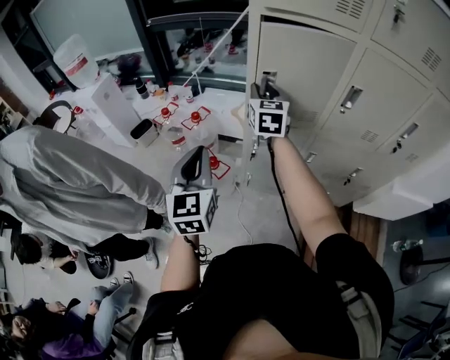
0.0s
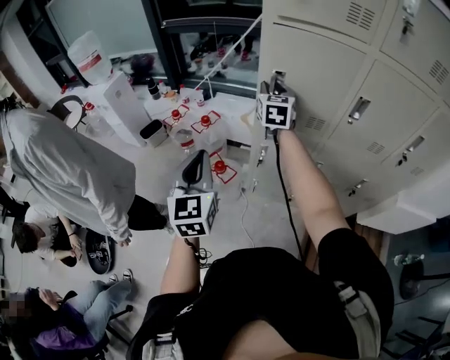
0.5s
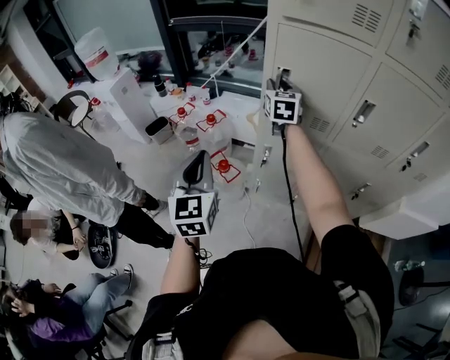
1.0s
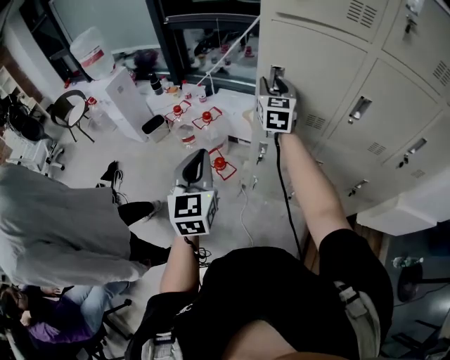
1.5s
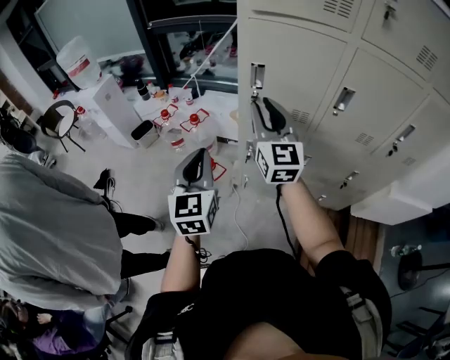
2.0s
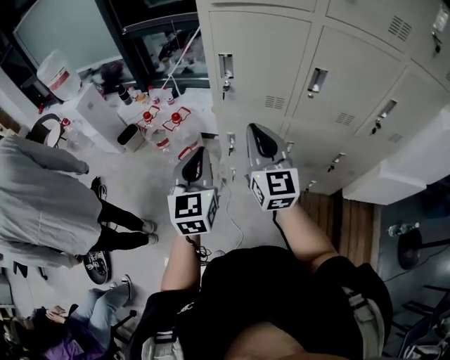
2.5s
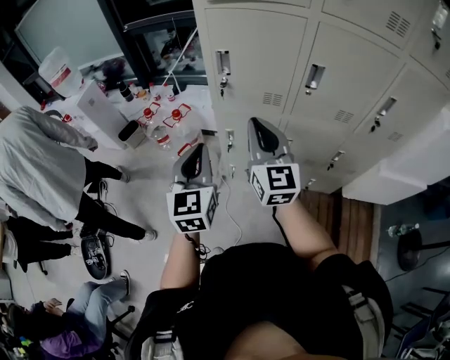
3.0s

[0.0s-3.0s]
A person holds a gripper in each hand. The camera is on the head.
1.5s to 3.0s: The right gripper shifts approximately 25 cm backward, and closes up, while the left gripper is displaced to the right by about 10 cm.

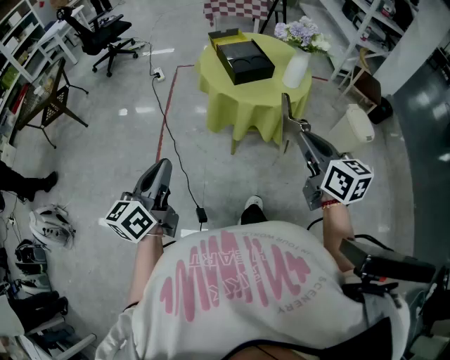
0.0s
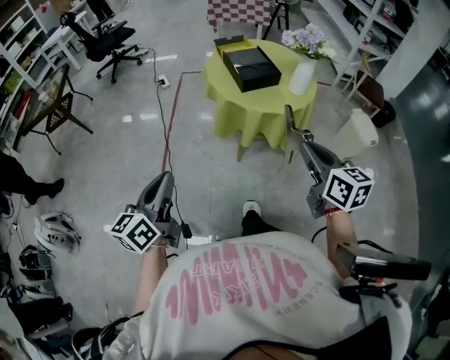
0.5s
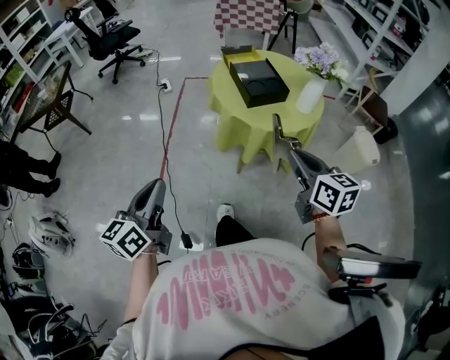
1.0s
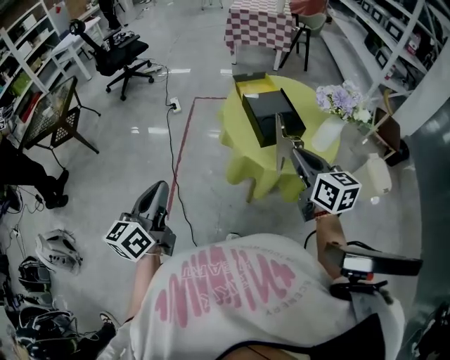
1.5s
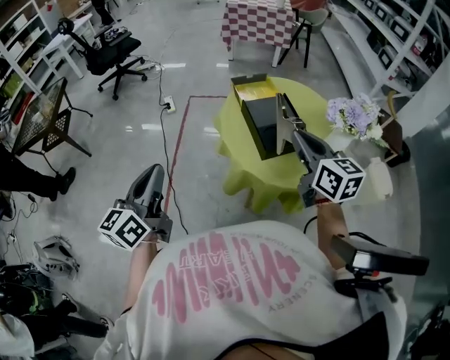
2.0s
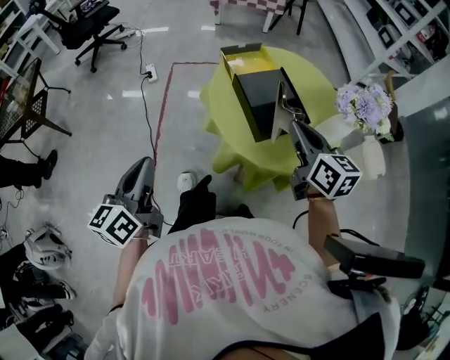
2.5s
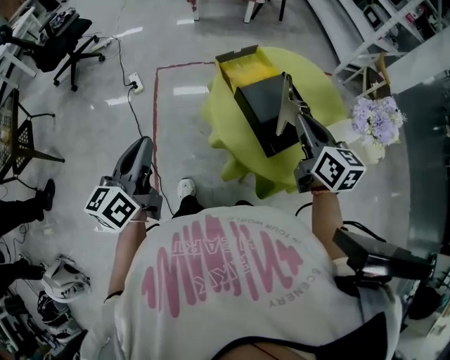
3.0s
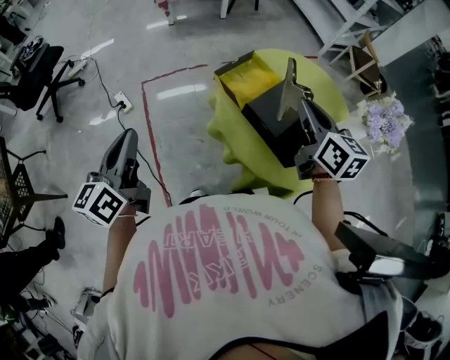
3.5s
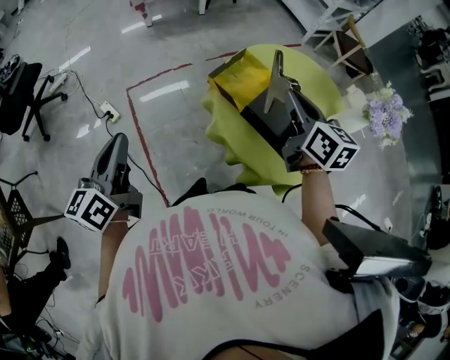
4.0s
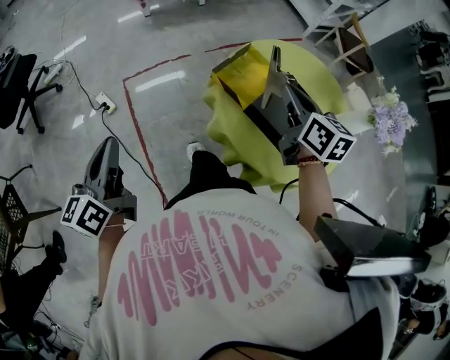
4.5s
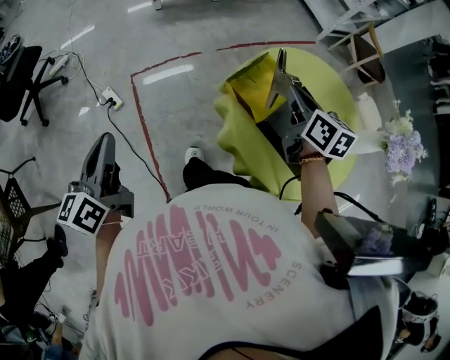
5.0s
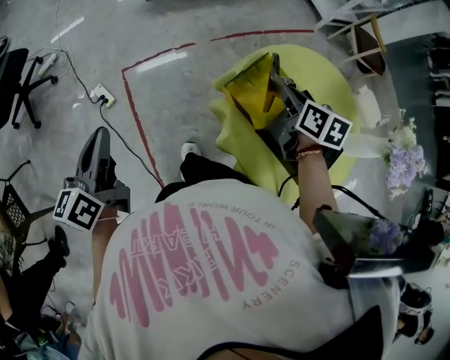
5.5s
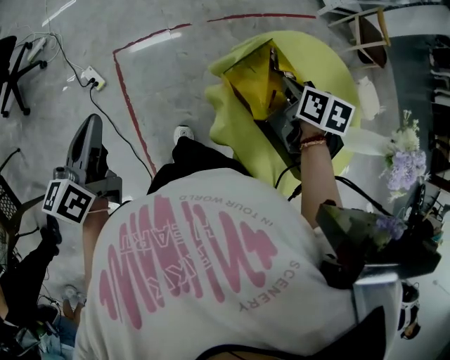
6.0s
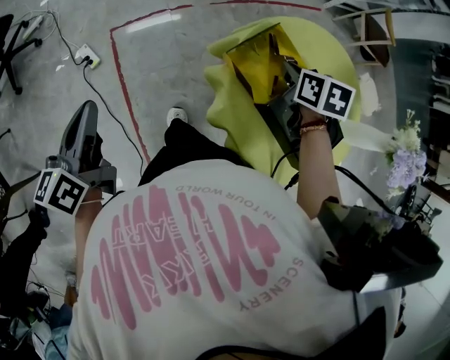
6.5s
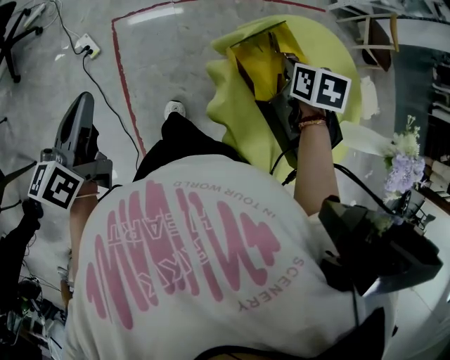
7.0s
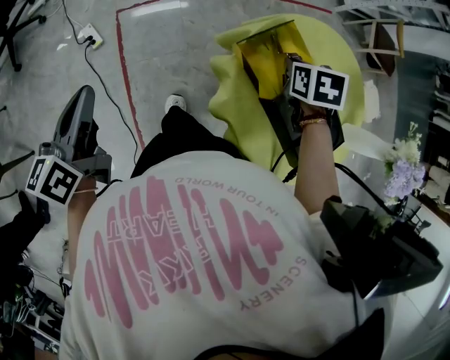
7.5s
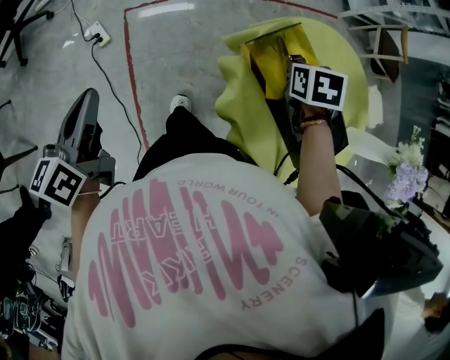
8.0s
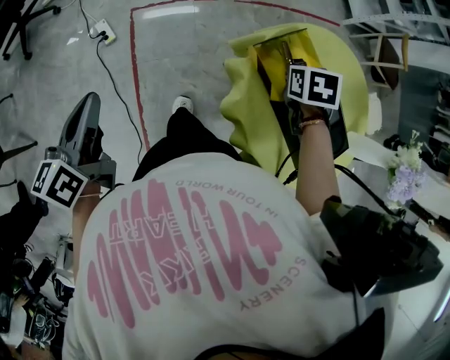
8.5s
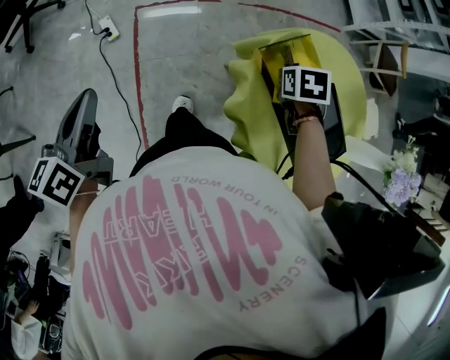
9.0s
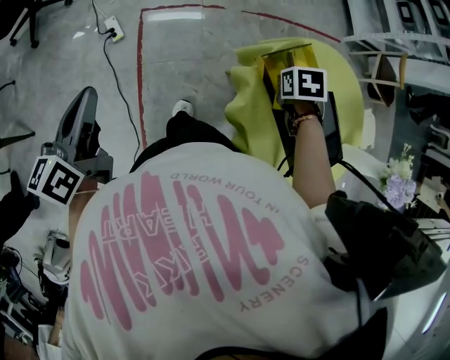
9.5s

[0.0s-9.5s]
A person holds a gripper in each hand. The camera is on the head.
0.0s to 2.0s: Both grippers travel together forward, roughly 35 cm.
2.0s to 4.0s: The left gripper ends up some 50 cm from where it was, and turns by about 30 degrees. The right gripper shifts by roughly 30 cm, and turns by approximately 40 degrees.
4.0s to 5.5s: The left gripper goes about 15 cm forward and to the left; the right gripper heads forward and downward, covering approximately 20 cm, and swivels about 20 degrees.
5.5s to 7.5s: The left gripper moves roughly 5 cm, while the right gripper heads downward, covering roughly 5 cm, and swivels about 40 degrees.
7.5s to 9.5s: The right gripper changes place by roughly 5 cm. The left gripper shifts by roughly 10 cm.

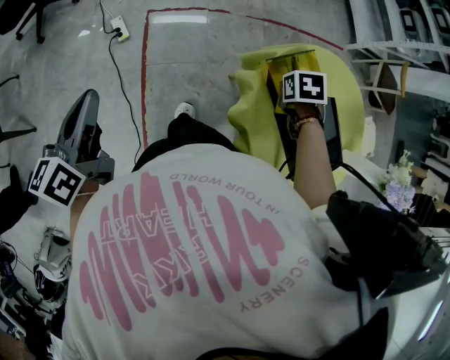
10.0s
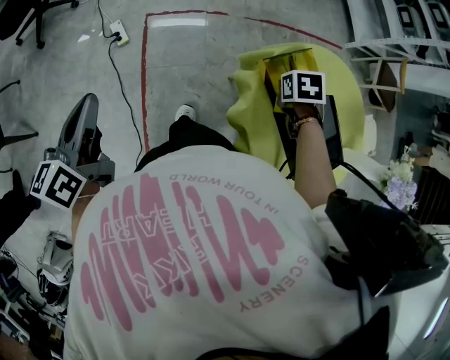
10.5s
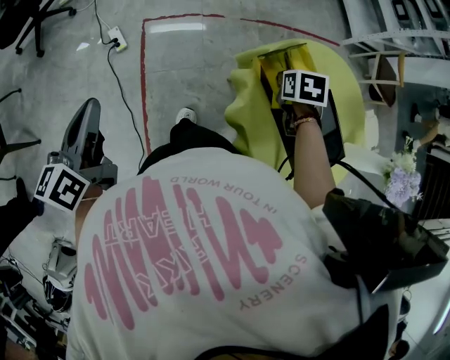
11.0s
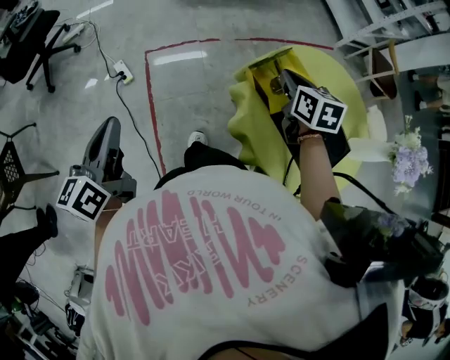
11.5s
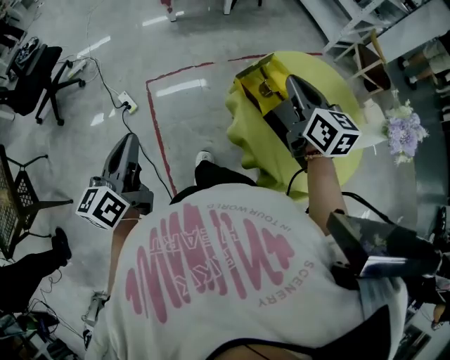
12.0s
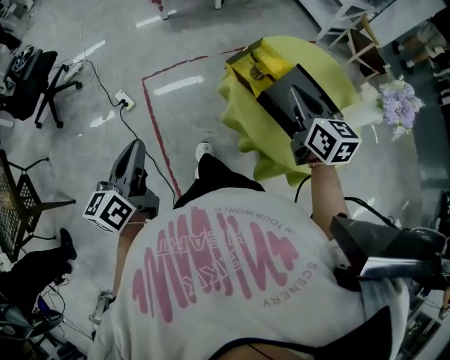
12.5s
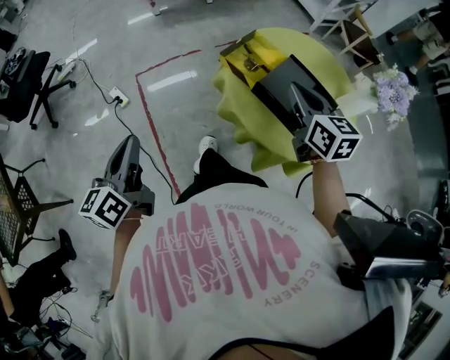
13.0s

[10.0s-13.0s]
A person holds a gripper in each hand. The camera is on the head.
10.0s to 11.5s: The left gripper shifts by approximately 5 cm. The right gripper moves upward, some 10 cm, and points its fingers roughly 40 degrees further upward.
11.5s to 13.0s: The right gripper shifts approximately 20 cm backward and upward. The left gripper is displaced backward and to the right by about 10 cm.

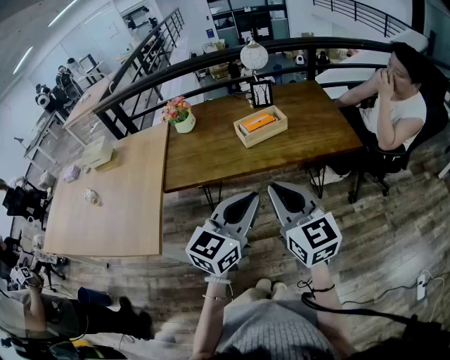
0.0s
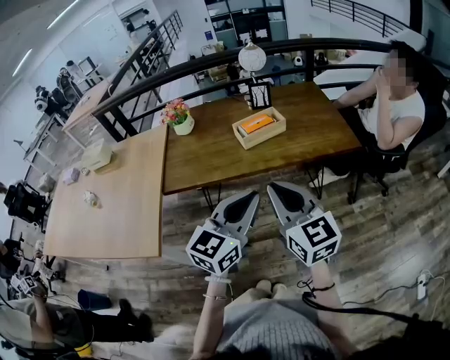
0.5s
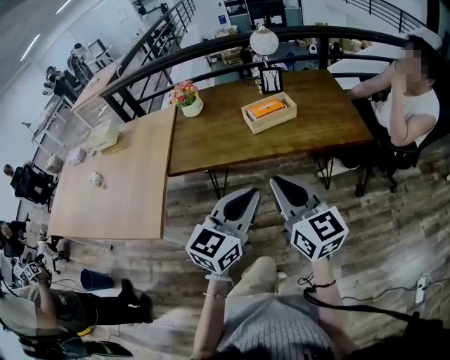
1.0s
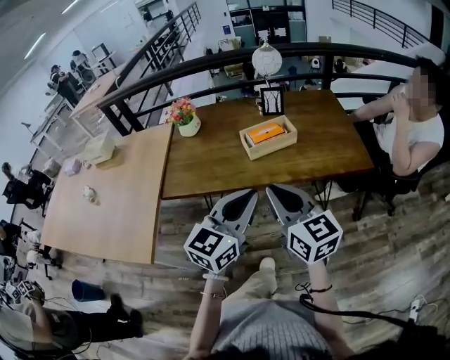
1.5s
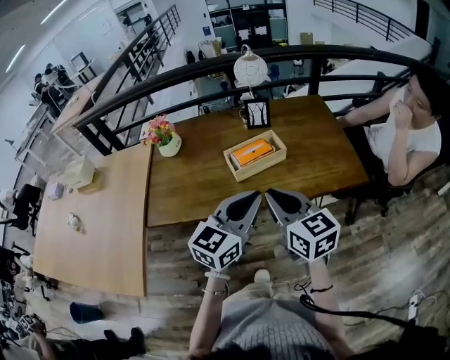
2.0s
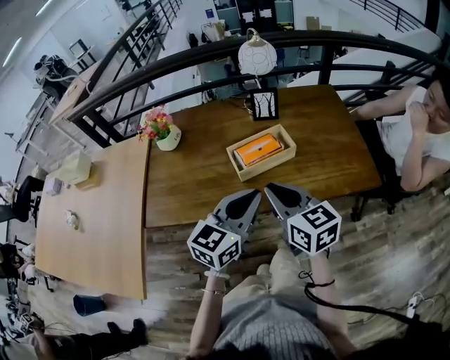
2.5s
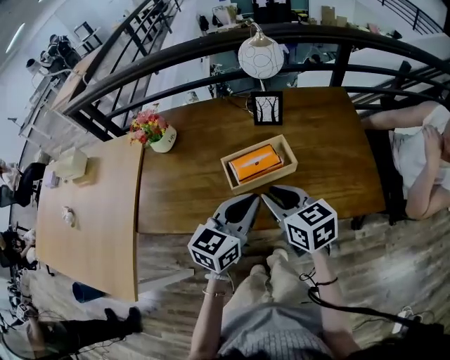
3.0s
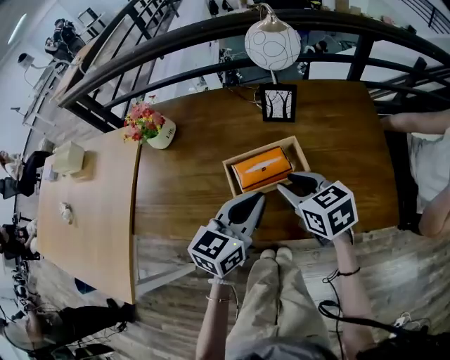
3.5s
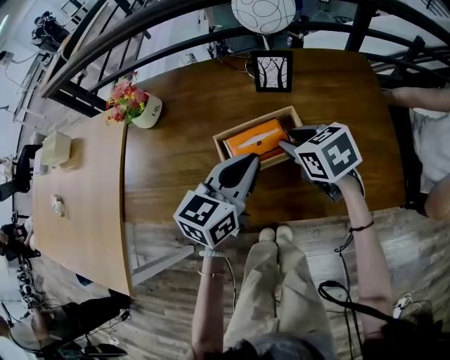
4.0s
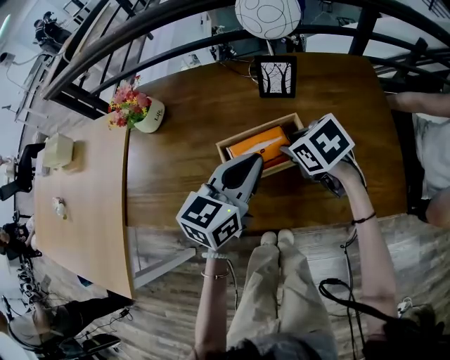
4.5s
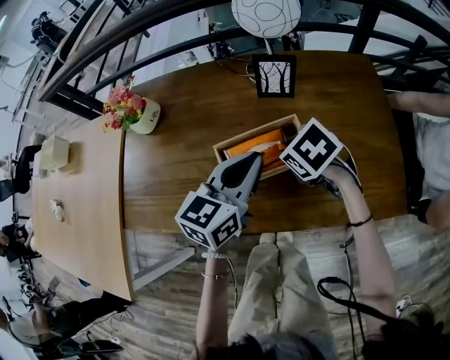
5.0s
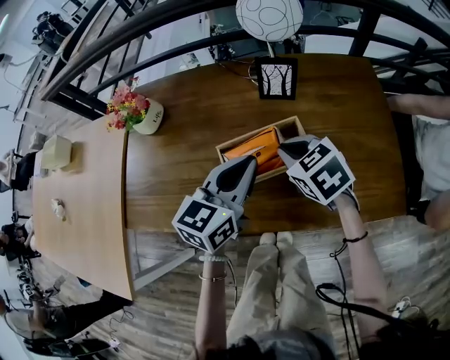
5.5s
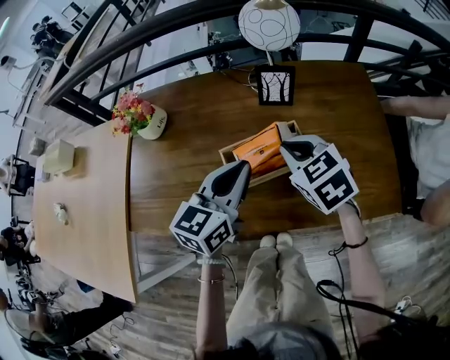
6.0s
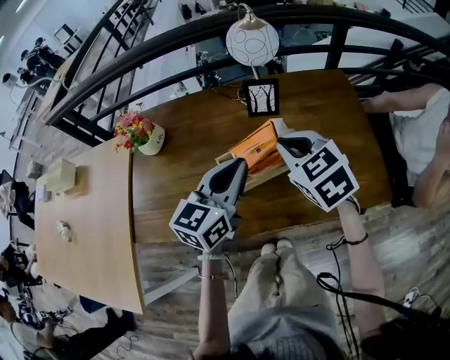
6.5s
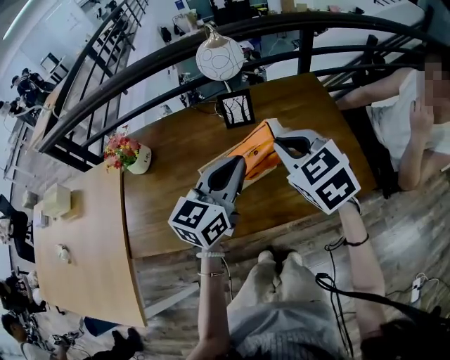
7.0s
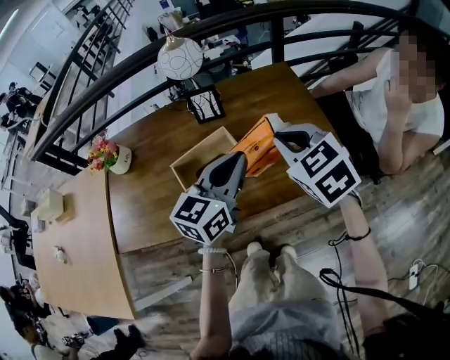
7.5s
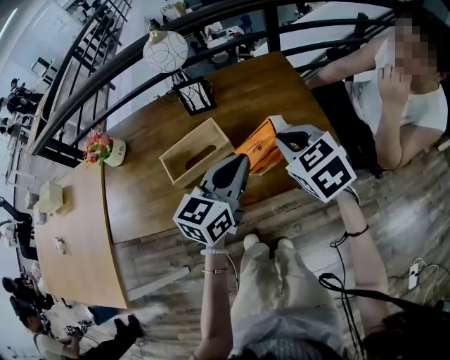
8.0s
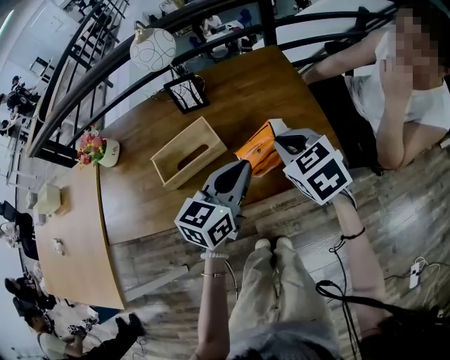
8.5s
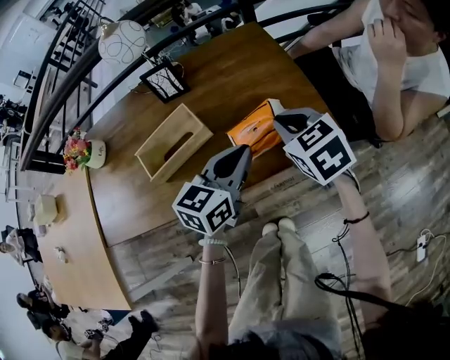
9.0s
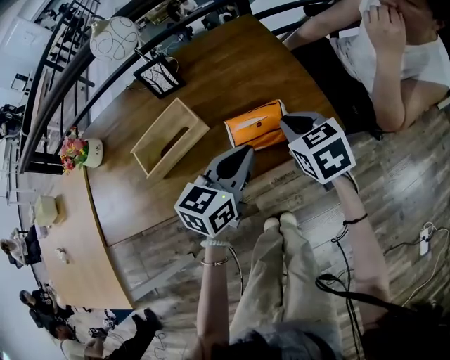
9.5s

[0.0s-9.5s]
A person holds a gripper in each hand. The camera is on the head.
0.0s to 2.0s: The grippers both shift forward by approximately 20 cm.
2.0s to 4.0s: Both grippers travel together forward and downward, some 30 cm. The right gripper angles its fingers downward, by approximately 30 degrees, and opens its fingers.
4.0s to 5.5s: The right gripper closes its fingers.
5.5s to 7.5s: The right gripper travels to the right, upward and backward by about 25 cm, and rotates roughly 20 degrees. Meanwhile the left gripper shifts some 15 cm to the right and upward.
7.5s to 9.5s: The two grippers go some 20 cm downward and to the right. The right gripper swivels some 20 degrees.

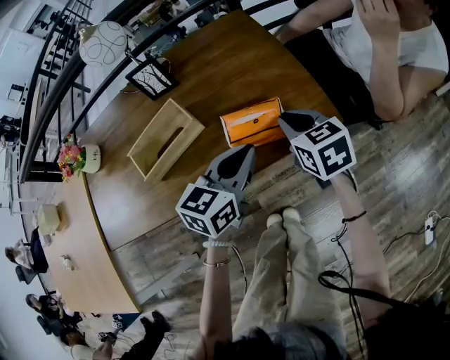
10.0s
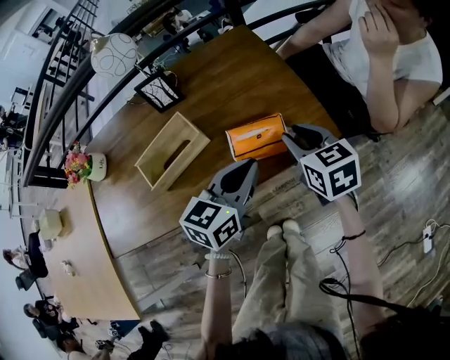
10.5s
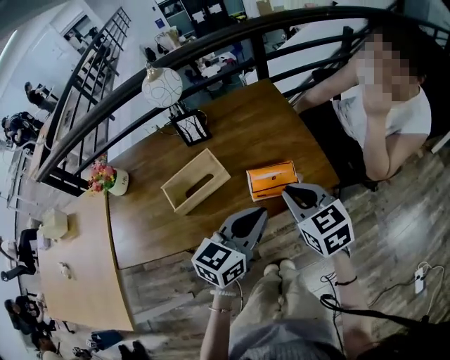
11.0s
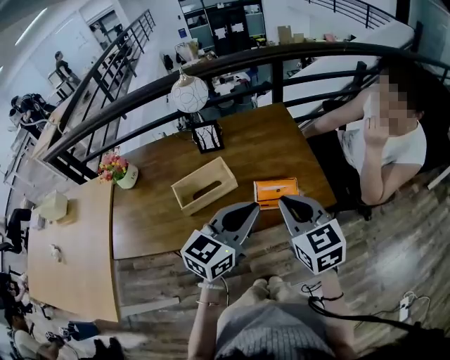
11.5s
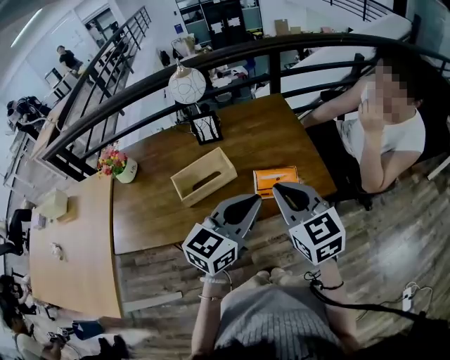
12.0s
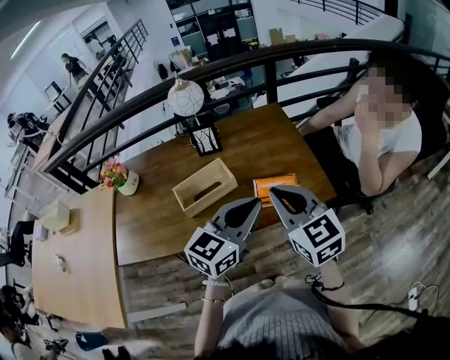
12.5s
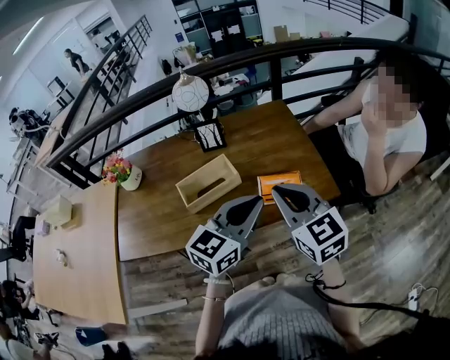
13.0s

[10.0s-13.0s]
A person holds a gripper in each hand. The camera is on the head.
10.0s to 11.5s: The left gripper travels upward by approximately 15 cm. Meanwhile the right gripper travels upward and backward by approximately 20 cm, and swivels some 20 degrees.
11.5s to 13.0s: The grippers stay close to where they were, moving slightly.
